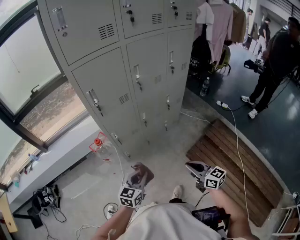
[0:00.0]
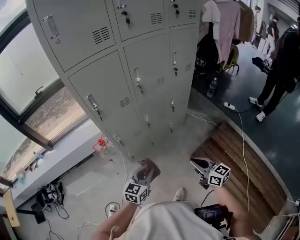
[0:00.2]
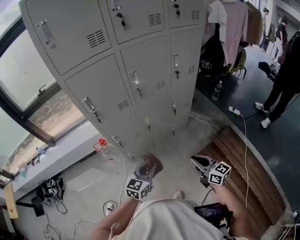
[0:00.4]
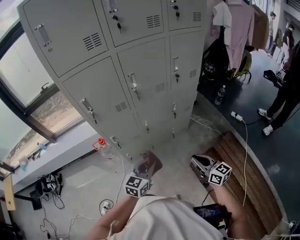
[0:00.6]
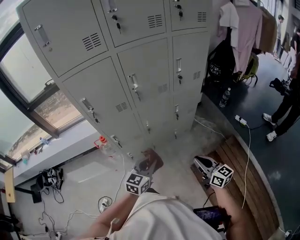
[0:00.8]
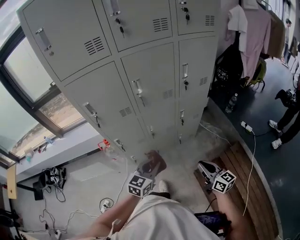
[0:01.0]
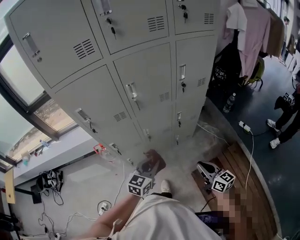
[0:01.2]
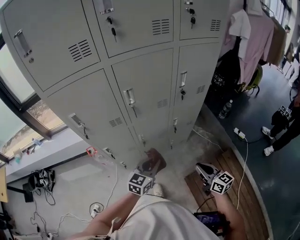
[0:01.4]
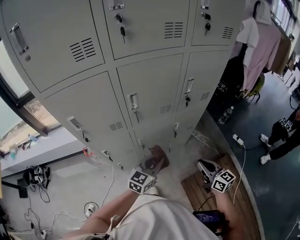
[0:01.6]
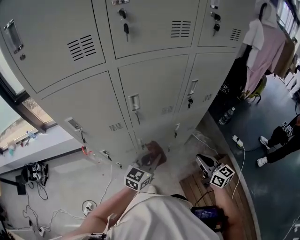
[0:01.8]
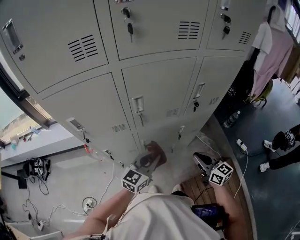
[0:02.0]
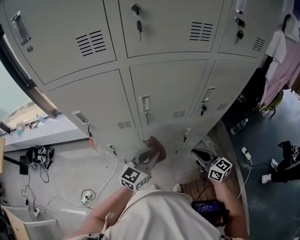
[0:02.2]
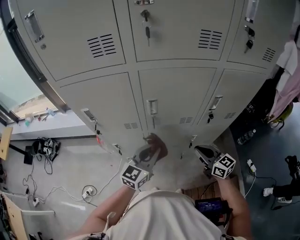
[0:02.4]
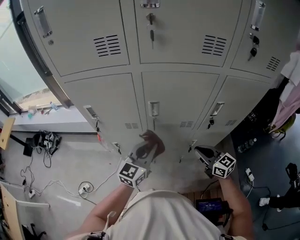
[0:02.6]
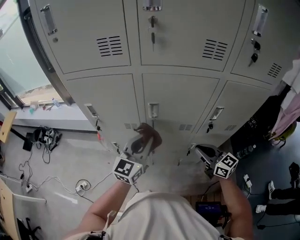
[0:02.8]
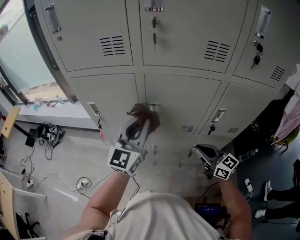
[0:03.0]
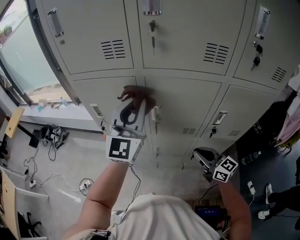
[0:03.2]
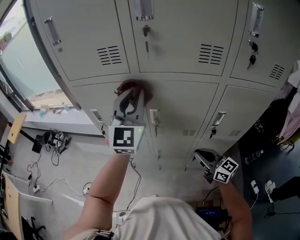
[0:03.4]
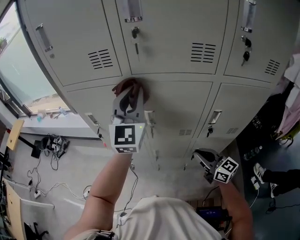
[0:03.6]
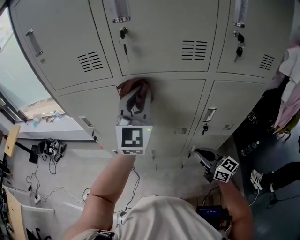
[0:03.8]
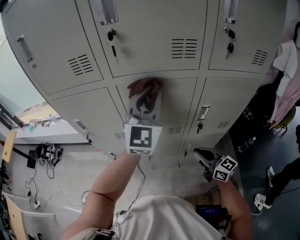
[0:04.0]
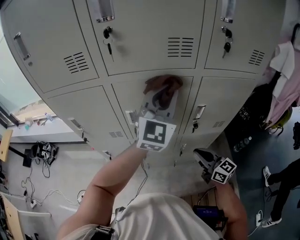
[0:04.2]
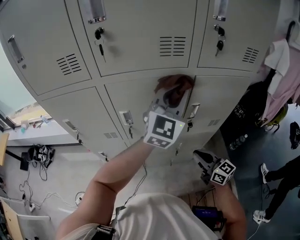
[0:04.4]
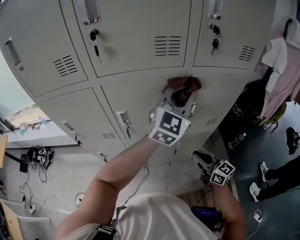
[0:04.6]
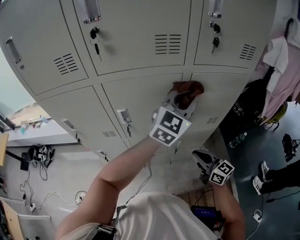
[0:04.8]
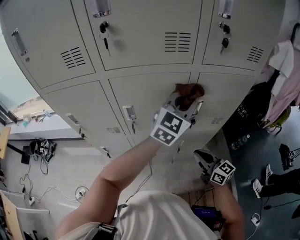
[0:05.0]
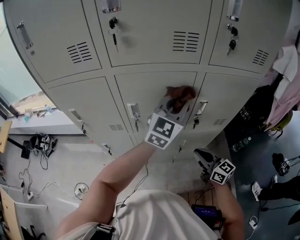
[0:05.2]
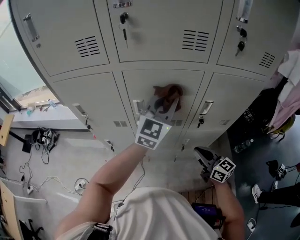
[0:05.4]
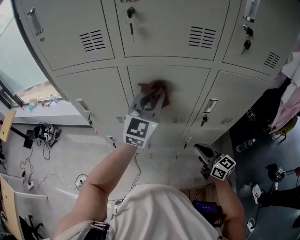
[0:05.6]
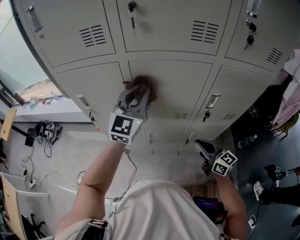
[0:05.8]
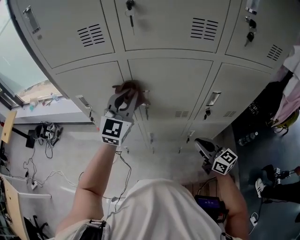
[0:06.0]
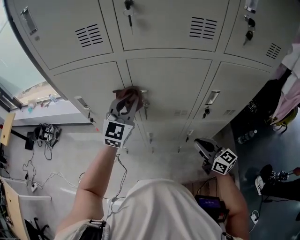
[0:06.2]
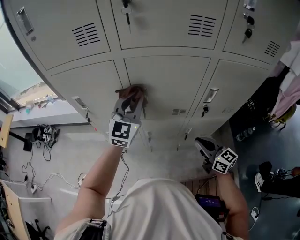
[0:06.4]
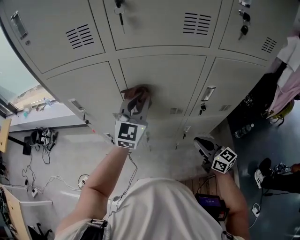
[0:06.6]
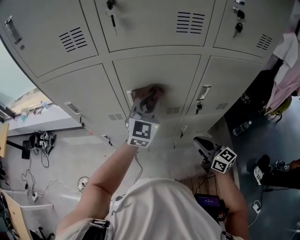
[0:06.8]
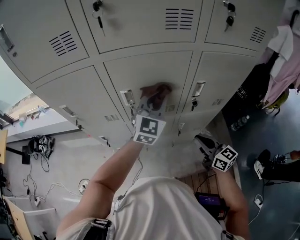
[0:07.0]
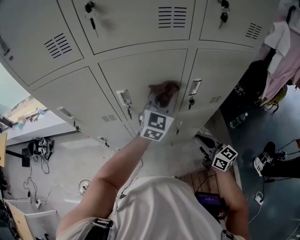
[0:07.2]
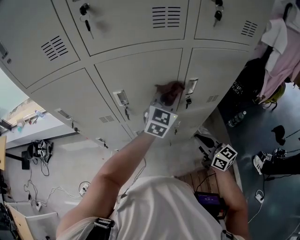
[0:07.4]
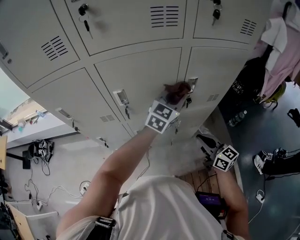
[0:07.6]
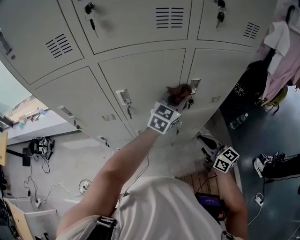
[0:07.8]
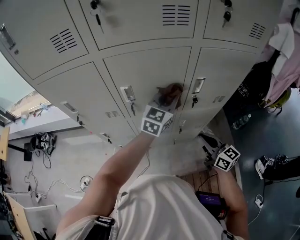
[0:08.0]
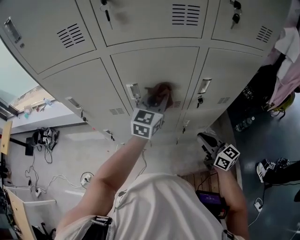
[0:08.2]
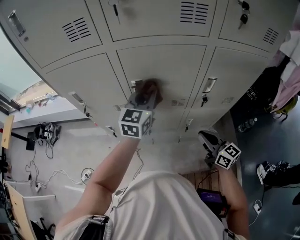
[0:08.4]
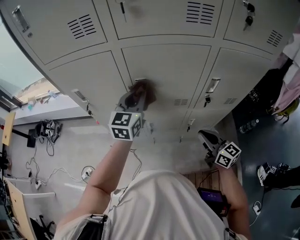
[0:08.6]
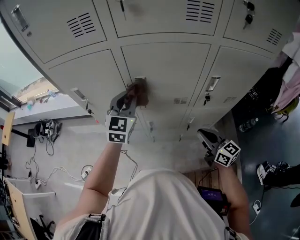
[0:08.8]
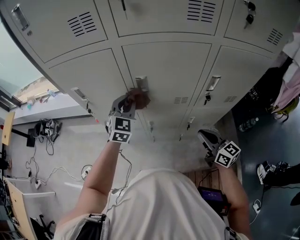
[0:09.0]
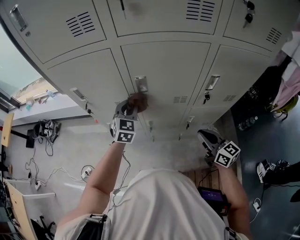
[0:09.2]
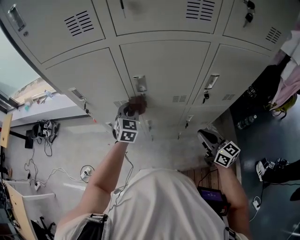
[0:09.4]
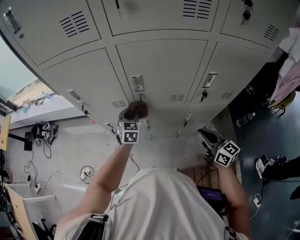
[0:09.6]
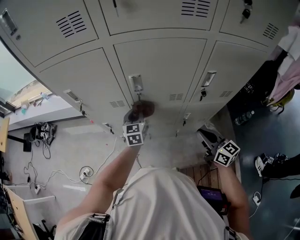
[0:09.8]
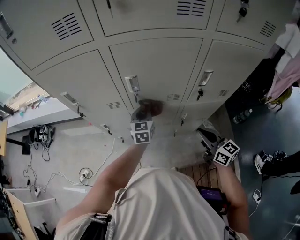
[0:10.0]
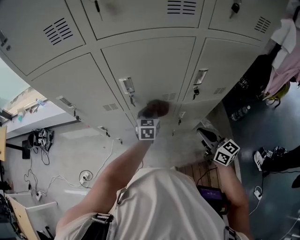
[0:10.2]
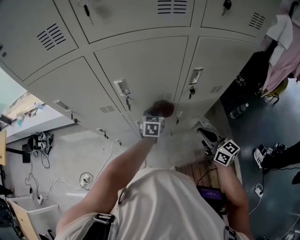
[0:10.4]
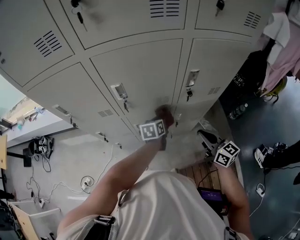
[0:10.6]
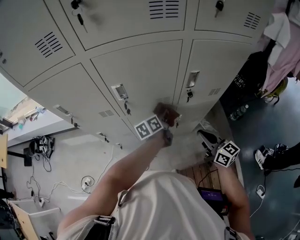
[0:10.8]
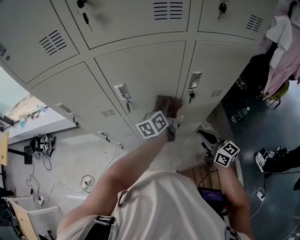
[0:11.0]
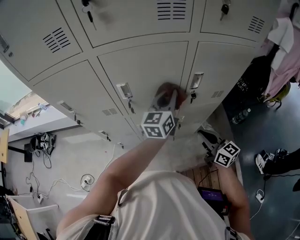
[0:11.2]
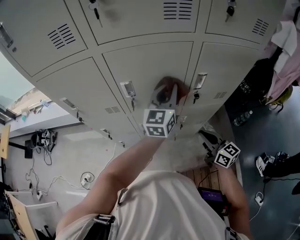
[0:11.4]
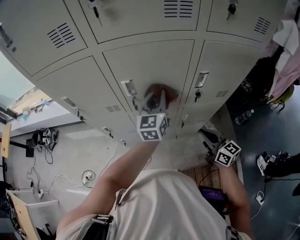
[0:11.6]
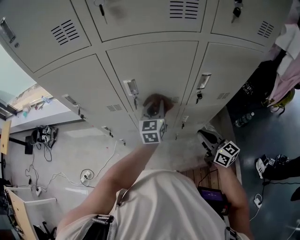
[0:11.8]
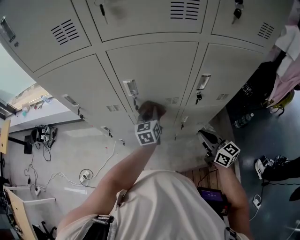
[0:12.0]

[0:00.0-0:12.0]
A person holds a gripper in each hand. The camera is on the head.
0:00.0 to 0:01.6: Both grippers travel together forward and to the right, some 35 cm.
0:01.6 to 0:03.0: The right gripper ends up approximately 20 cm from where it was, and changes its angle by approximately 40 degrees; the left gripper is displaced upward by roughly 20 cm, and changes its angle by approximately 50 degrees.
0:03.0 to 0:04.4: The right gripper goes some 10 cm to the right. The left gripper is displaced to the right by some 25 cm, and swivels some 20 degrees.
0:04.4 to 0:06.0: The right gripper moves to the left, some 5 cm. The left gripper travels to the left and downward by roughly 25 cm.
0:06.0 to 0:07.6: The right gripper goes approximately 5 cm to the right. Meanwhile the left gripper shifts approximately 30 cm to the right, and swivels about 30 degrees.
0:07.6 to 0:09.0: The left gripper travels to the left by some 30 cm, and turns by about 40 degrees. Meanwhile the right gripper moves to the left, approximately 5 cm.
0:09.0 to 0:10.4: The right gripper ends up some 5 cm from where it was. Meanwhile the left gripper shifts approximately 25 cm to the right and downward, and changes its angle by about 30 degrees.
0:10.4 to 0:12.0: The left gripper goes roughly 5 cm to the left, reaches approximately 25 cm upward, then returns, and rotates roughly 20 degrees.

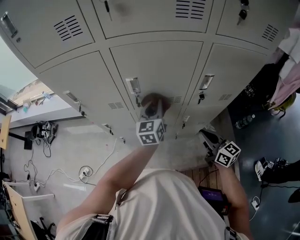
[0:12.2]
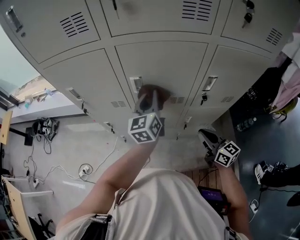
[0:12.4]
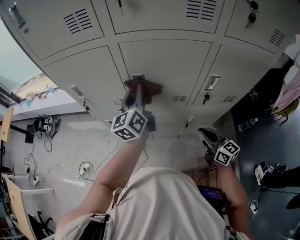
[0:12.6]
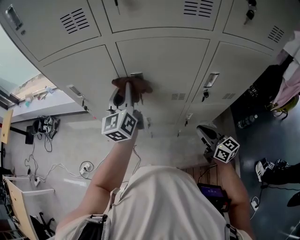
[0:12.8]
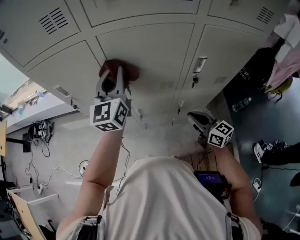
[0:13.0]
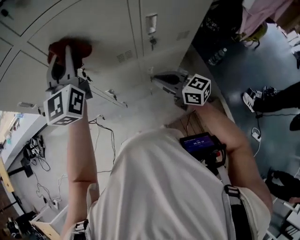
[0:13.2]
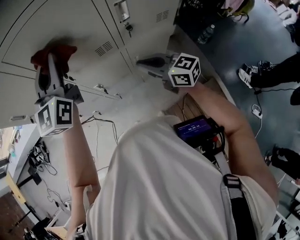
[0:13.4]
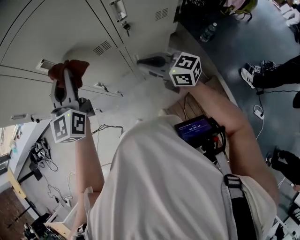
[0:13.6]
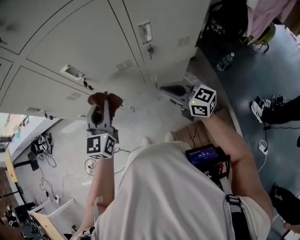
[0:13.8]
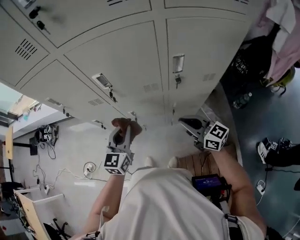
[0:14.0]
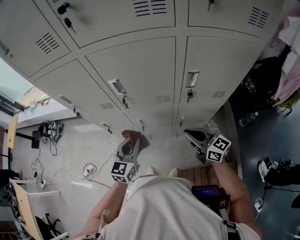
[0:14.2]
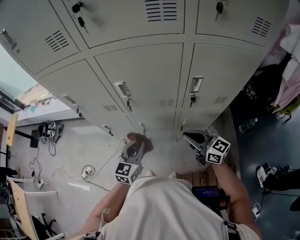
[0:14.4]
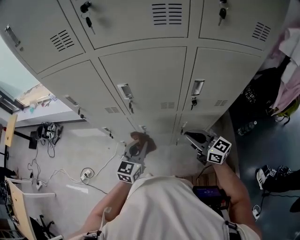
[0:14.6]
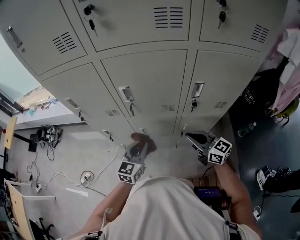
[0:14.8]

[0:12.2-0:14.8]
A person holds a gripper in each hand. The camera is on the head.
0:12.2 to 0:13.4: The left gripper heads upward, covering roughly 20 cm, and swivels about 30 degrees.
0:13.4 to 0:14.8: The left gripper heads downward and backward, covering about 25 cm, and swivels some 30 degrees.

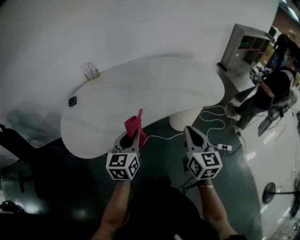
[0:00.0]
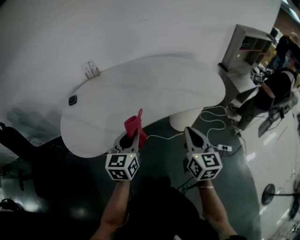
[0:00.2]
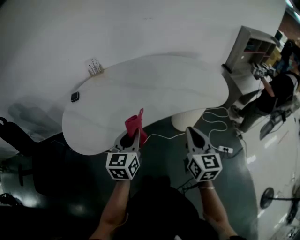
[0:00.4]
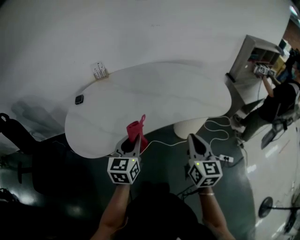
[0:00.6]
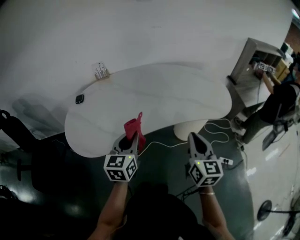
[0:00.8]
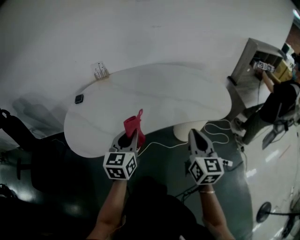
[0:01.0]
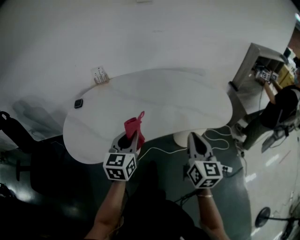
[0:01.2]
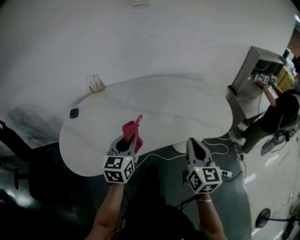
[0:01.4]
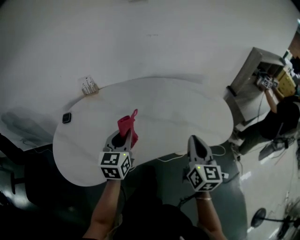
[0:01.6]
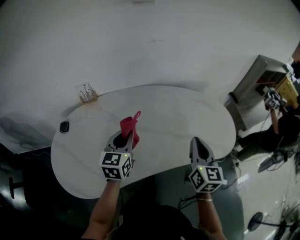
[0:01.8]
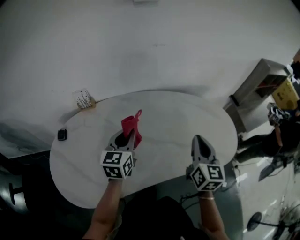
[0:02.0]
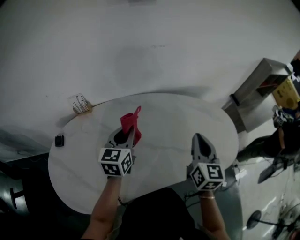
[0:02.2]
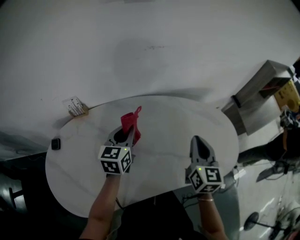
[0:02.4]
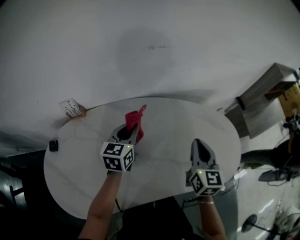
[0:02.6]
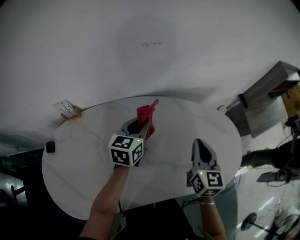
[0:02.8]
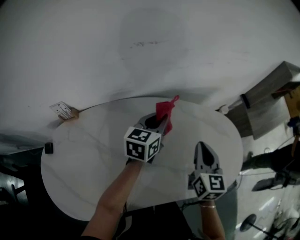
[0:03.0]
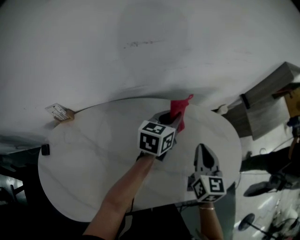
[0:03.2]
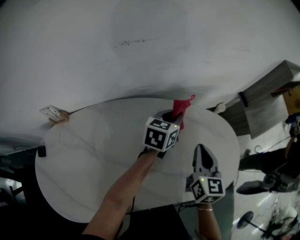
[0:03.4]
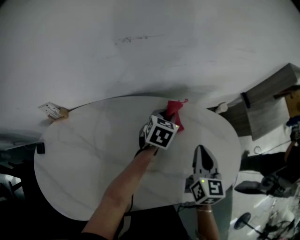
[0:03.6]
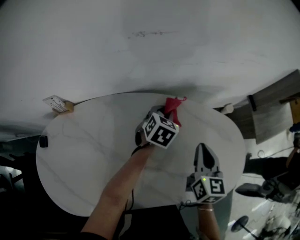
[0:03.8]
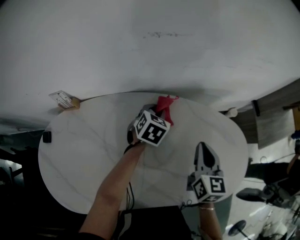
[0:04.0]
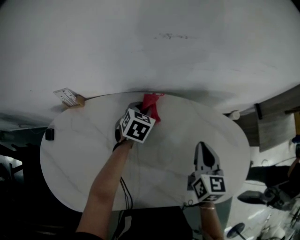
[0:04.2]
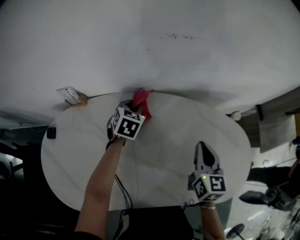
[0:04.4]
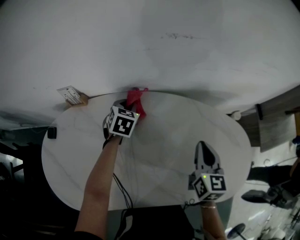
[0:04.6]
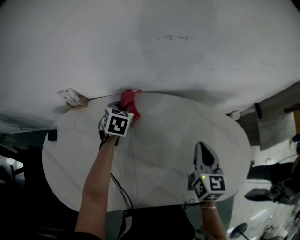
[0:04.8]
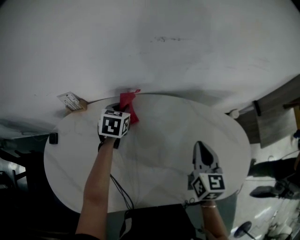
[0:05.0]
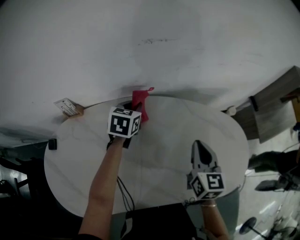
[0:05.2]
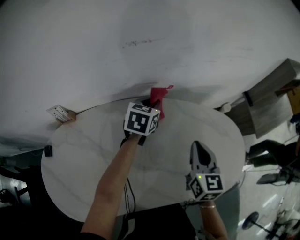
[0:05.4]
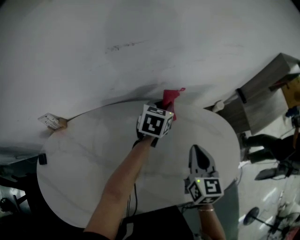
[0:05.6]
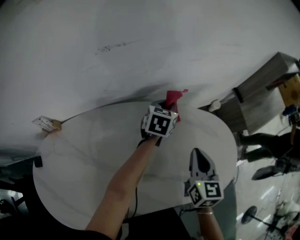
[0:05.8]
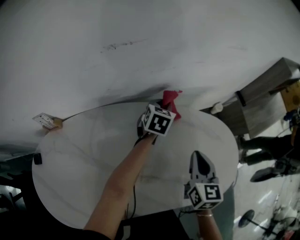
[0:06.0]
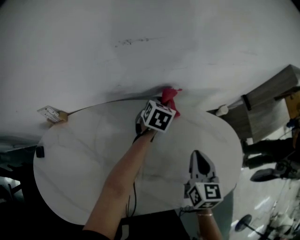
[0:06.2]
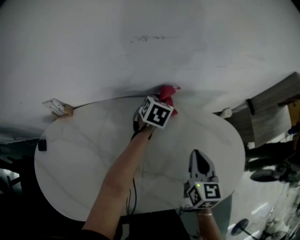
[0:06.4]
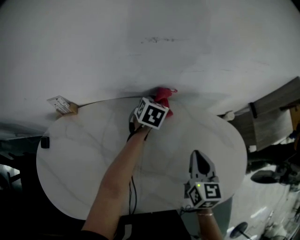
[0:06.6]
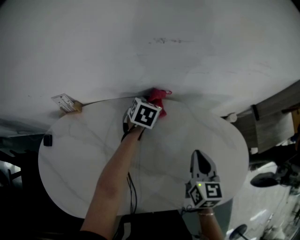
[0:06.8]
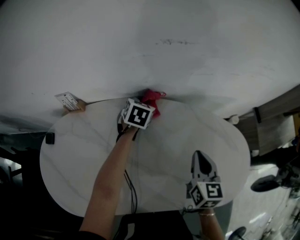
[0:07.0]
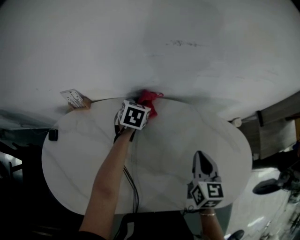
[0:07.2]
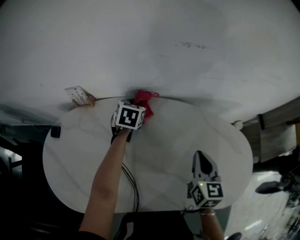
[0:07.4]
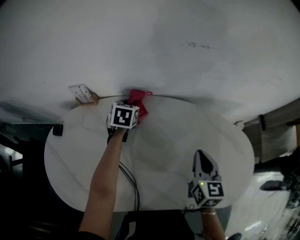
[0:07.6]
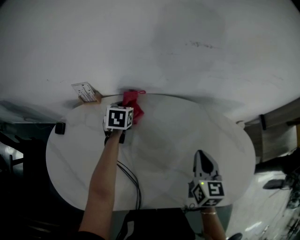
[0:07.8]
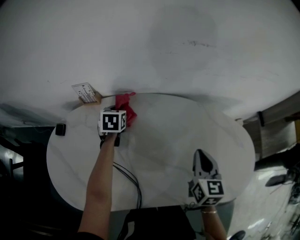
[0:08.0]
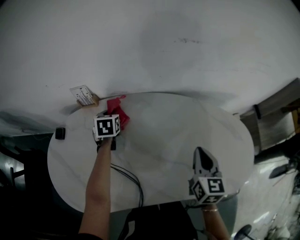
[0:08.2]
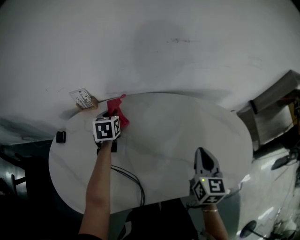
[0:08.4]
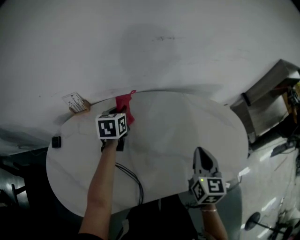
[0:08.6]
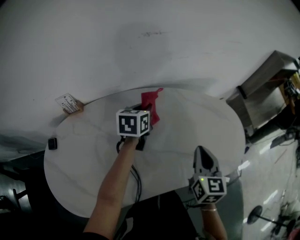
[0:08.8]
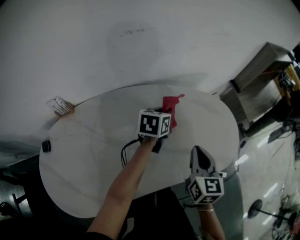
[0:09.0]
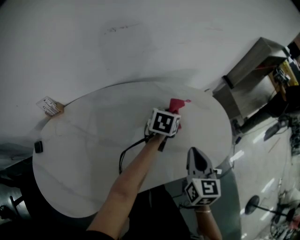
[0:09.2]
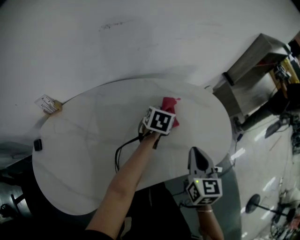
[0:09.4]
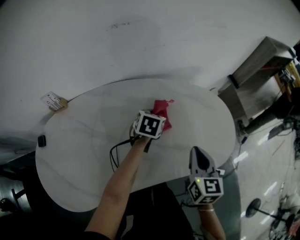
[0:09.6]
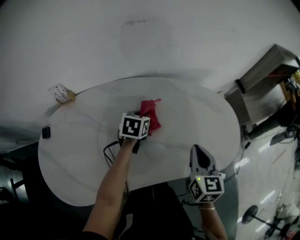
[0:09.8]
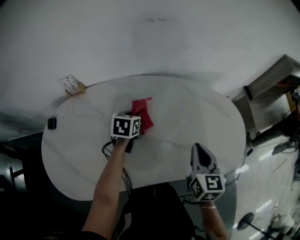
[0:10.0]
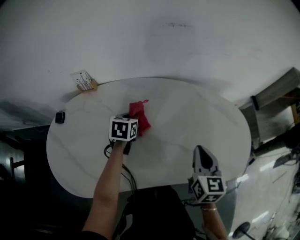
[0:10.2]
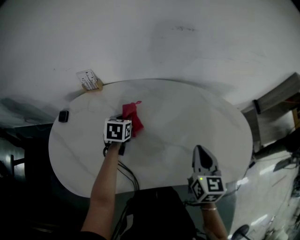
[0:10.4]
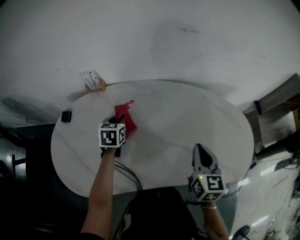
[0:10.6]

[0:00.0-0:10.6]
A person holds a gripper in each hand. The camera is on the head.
0:00.0 to 0:01.6: Both grippers move forward, about 20 cm.
0:01.6 to 0:03.0: The two grippers go roughly 30 cm forward. The left gripper swivels roughly 20 degrees.
0:03.0 to 0:04.6: The right gripper shifts by roughly 5 cm, while the left gripper moves approximately 25 cm, and rotates roughly 40 degrees.
0:04.6 to 0:06.0: The left gripper shifts by some 30 cm, and swivels some 20 degrees. Meanwhile the right gripper moves approximately 10 cm.
0:06.0 to 0:07.6: The left gripper shifts by roughly 35 cm, and turns by some 30 degrees. Meanwhile the right gripper shifts by some 10 cm.
0:07.6 to 0:09.0: The right gripper shifts by some 15 cm. Meanwhile the left gripper changes place by approximately 35 cm, and turns by some 40 degrees.
0:09.0 to 0:10.6: The left gripper moves approximately 35 cm, and swivels about 40 degrees. Meanwhile the right gripper shifts by roughly 10 cm.
